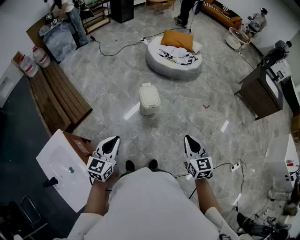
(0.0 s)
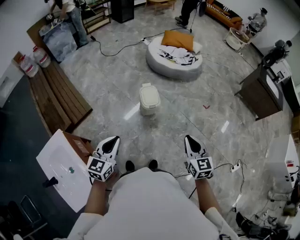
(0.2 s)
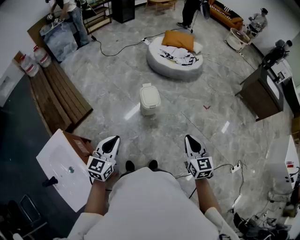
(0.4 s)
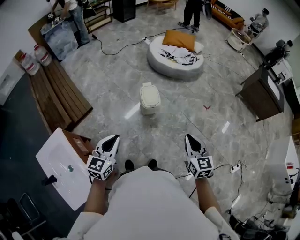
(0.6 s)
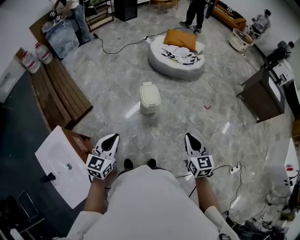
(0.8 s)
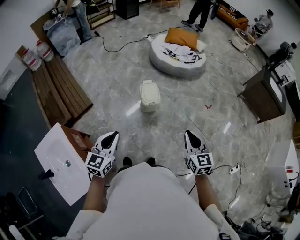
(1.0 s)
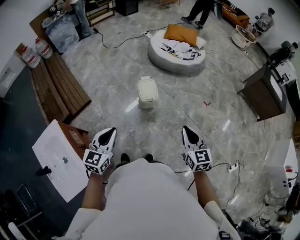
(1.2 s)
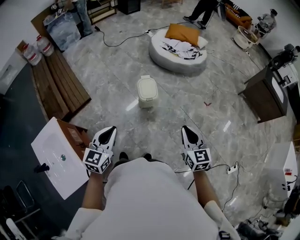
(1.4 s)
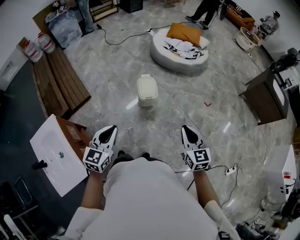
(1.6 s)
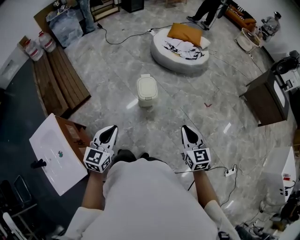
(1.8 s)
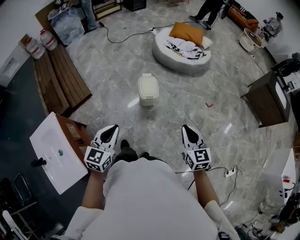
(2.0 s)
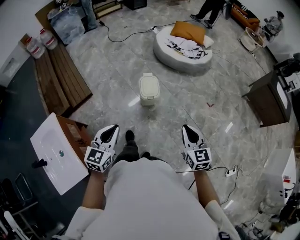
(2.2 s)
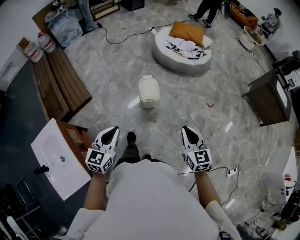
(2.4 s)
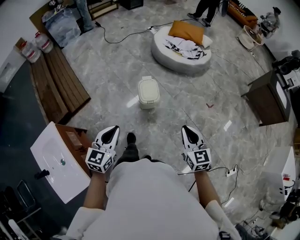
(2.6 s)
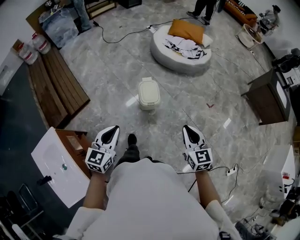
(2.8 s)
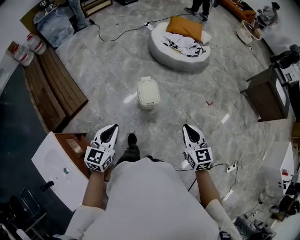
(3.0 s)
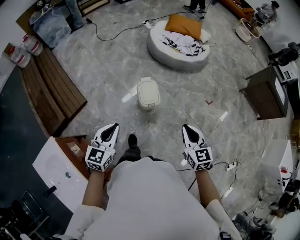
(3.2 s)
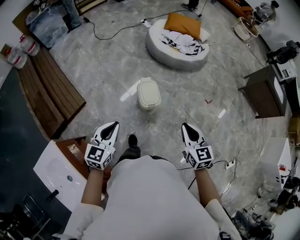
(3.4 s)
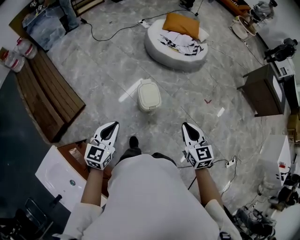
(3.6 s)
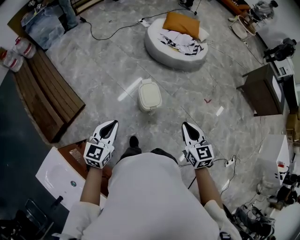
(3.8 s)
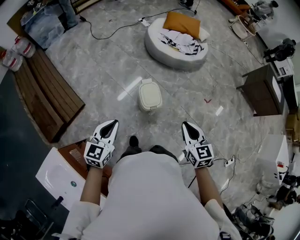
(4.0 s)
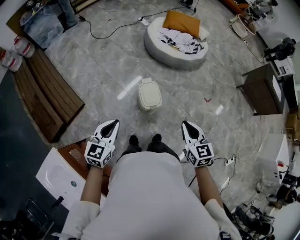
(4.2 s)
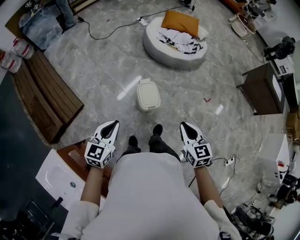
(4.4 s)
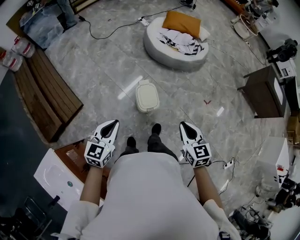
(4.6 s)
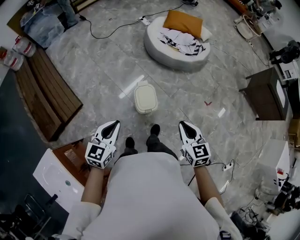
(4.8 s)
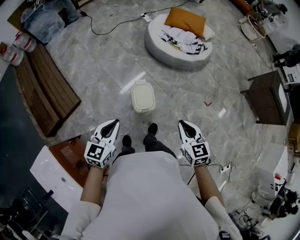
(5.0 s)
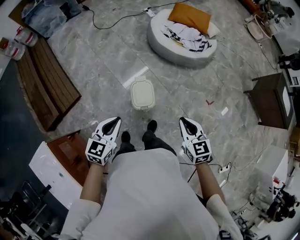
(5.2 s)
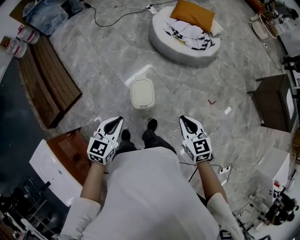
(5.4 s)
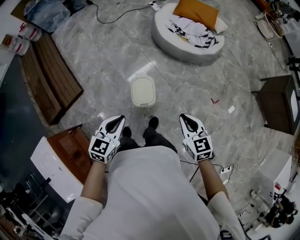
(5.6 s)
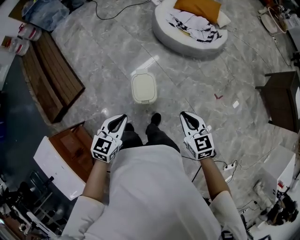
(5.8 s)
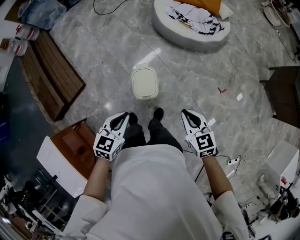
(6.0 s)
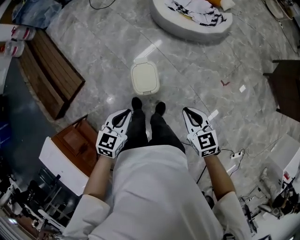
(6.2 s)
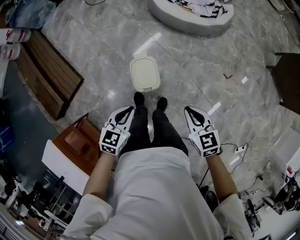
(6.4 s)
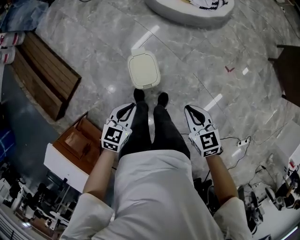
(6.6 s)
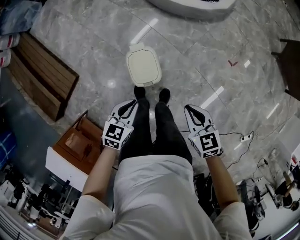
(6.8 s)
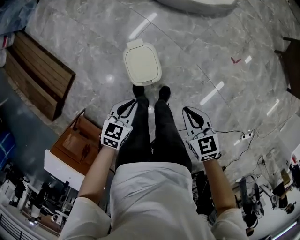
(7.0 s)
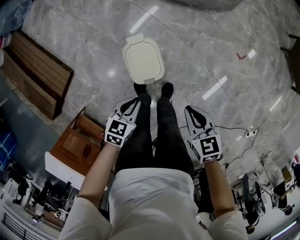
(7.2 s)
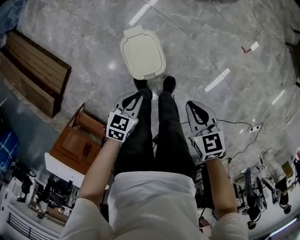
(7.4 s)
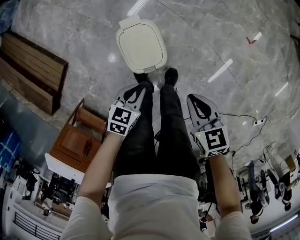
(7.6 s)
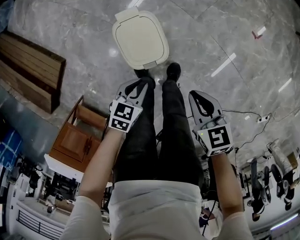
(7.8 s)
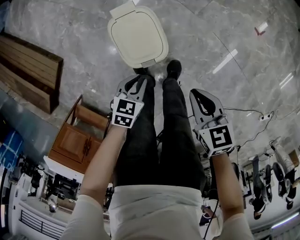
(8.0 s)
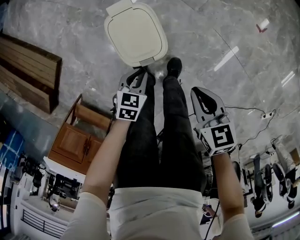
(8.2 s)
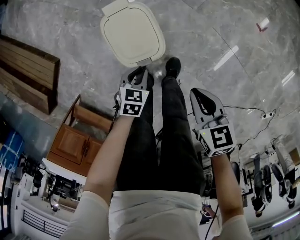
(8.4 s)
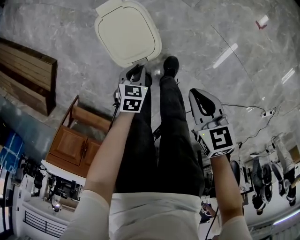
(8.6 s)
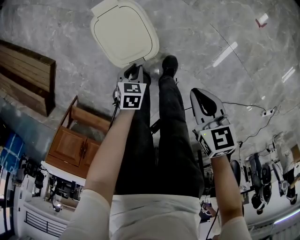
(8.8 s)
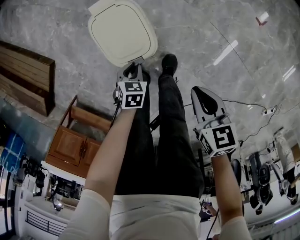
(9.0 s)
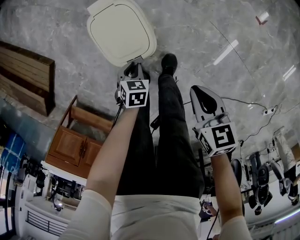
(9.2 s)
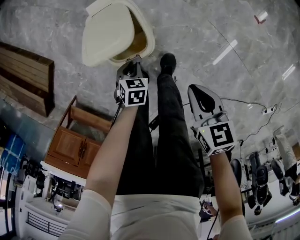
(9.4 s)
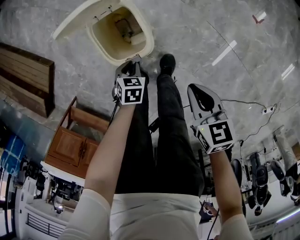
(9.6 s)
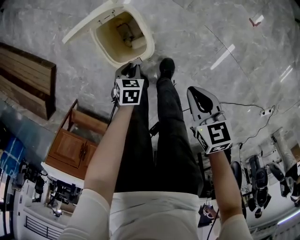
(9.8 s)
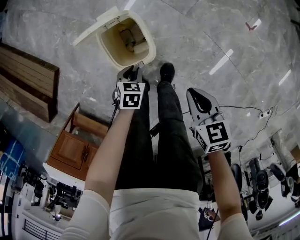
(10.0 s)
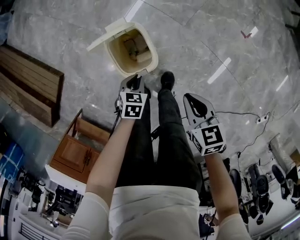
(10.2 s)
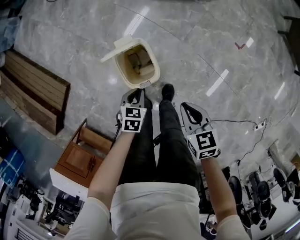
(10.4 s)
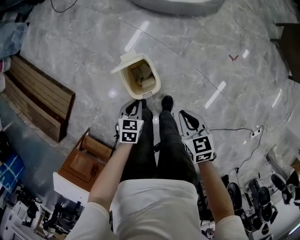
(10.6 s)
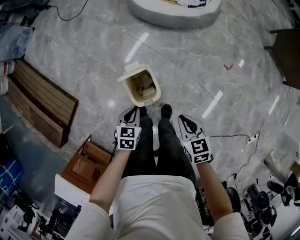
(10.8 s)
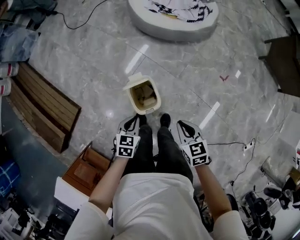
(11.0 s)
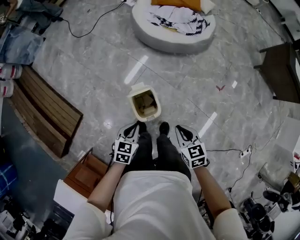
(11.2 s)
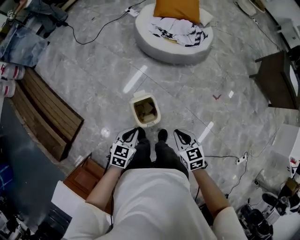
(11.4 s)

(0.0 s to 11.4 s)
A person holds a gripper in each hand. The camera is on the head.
0.0 s - 1.4 s: Both grippers travel together to the right, approximately 5 cm.
1.4 s - 2.8 s: Both grippers travel together forward, roughly 10 cm.
2.8 s - 4.2 s: Both grippers move forward and to the left, roughly 15 cm.
4.2 s - 5.6 s: The left gripper shifts roughly 20 cm to the right and forward. Meanwhile the right gripper heads forward, to the right and downward, covering approximately 20 cm.
5.6 s - 7.2 s: Both grippers move downward, roughly 25 cm. The left gripper turns by approximately 30 degrees. The right gripper turns by about 20 degrees.
7.2 s - 8.6 s: The right gripper heads downward, covering approximately 15 cm. The left gripper travels downward by about 25 cm.
8.6 s - 10.0 s: The grippers make only small movements.
10.0 s - 11.4 s: The right gripper goes approximately 25 cm upward. The left gripper shifts about 40 cm upward, and swivels some 30 degrees.

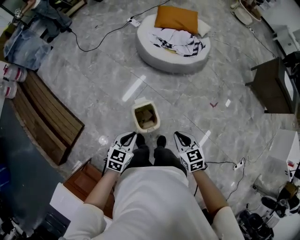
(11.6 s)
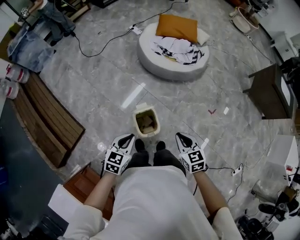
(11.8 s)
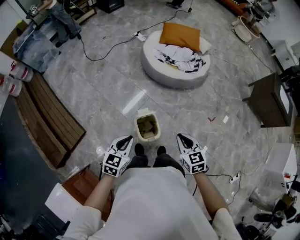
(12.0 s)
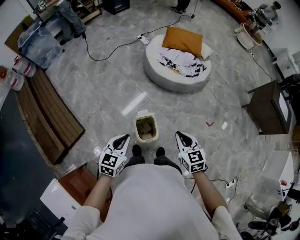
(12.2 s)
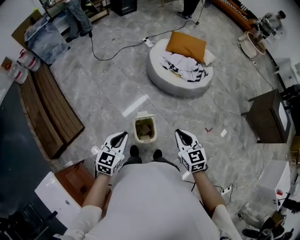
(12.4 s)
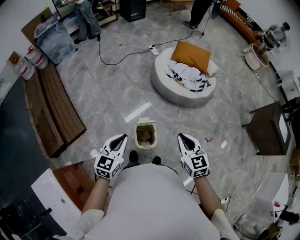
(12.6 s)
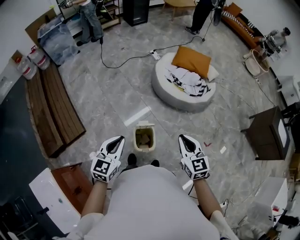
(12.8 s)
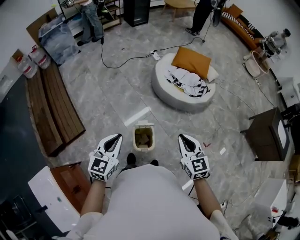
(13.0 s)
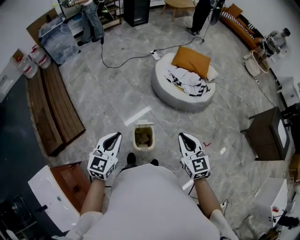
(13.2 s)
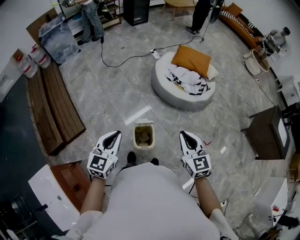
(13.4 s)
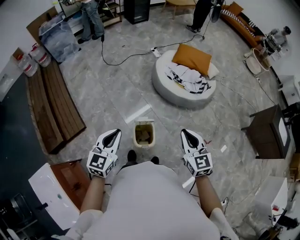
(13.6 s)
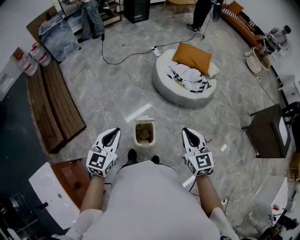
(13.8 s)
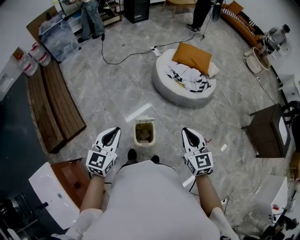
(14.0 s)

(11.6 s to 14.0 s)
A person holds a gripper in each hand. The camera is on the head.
11.6 s - 12.8 s: The right gripper goes approximately 20 cm upward and forward, and swivels roughly 20 degrees. Meanwhile the left gripper shifts about 20 cm upward, and changes its angle by approximately 30 degrees.
12.8 s - 14.0 s: The grippers make only small movements.

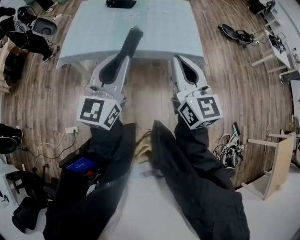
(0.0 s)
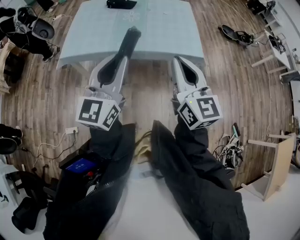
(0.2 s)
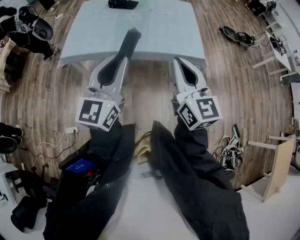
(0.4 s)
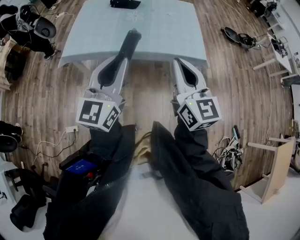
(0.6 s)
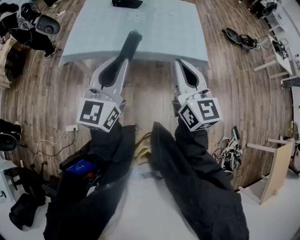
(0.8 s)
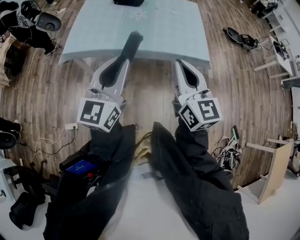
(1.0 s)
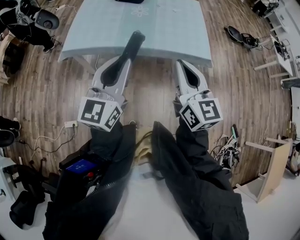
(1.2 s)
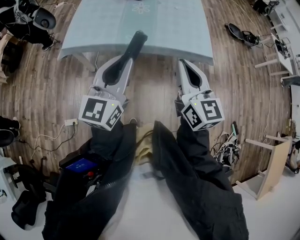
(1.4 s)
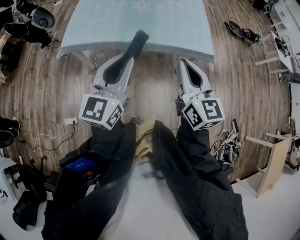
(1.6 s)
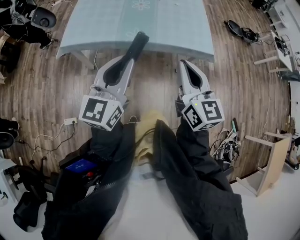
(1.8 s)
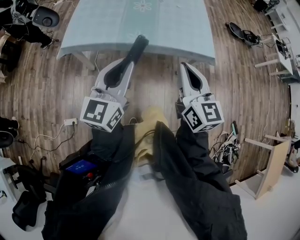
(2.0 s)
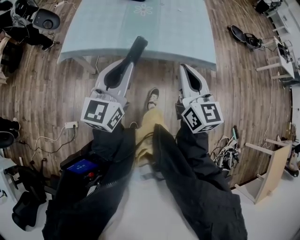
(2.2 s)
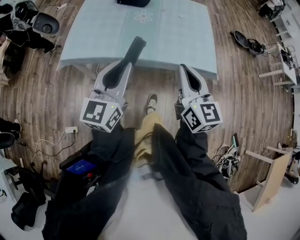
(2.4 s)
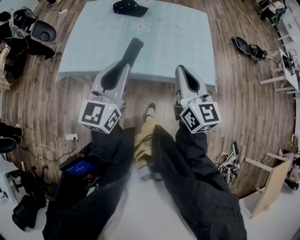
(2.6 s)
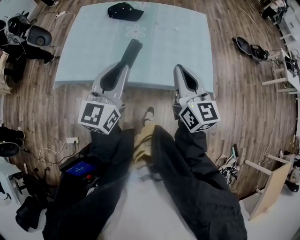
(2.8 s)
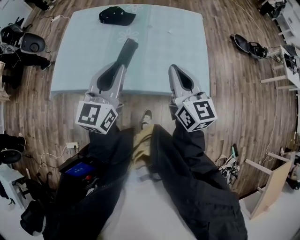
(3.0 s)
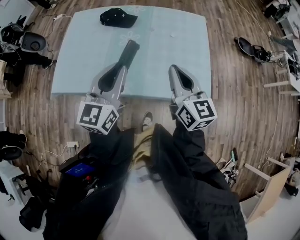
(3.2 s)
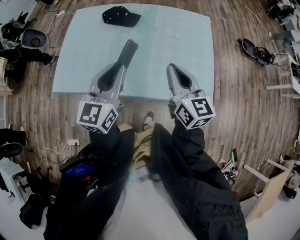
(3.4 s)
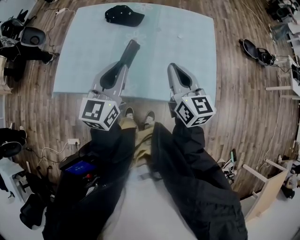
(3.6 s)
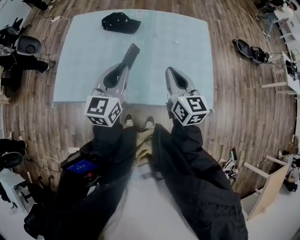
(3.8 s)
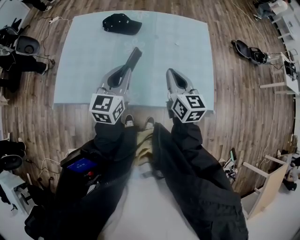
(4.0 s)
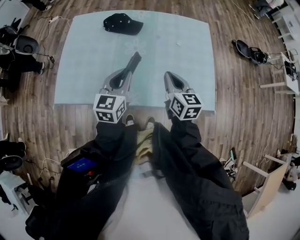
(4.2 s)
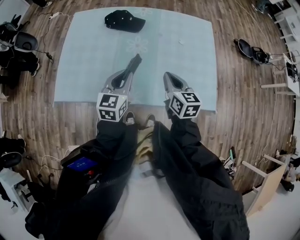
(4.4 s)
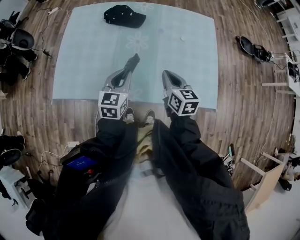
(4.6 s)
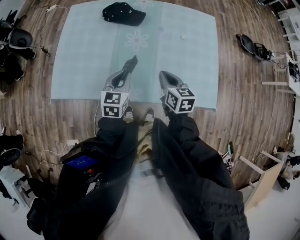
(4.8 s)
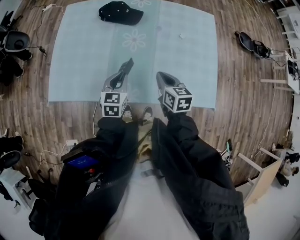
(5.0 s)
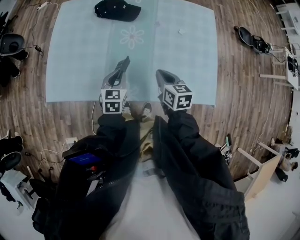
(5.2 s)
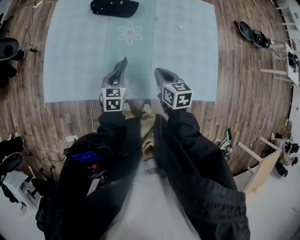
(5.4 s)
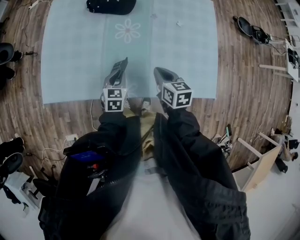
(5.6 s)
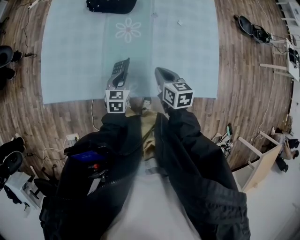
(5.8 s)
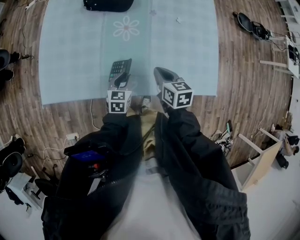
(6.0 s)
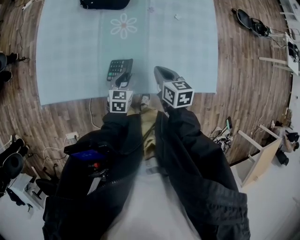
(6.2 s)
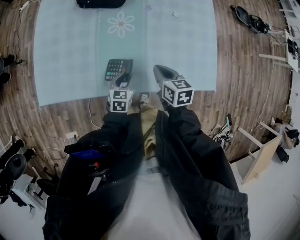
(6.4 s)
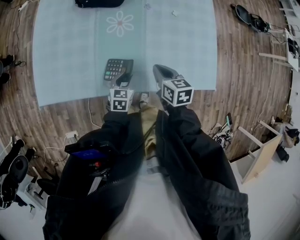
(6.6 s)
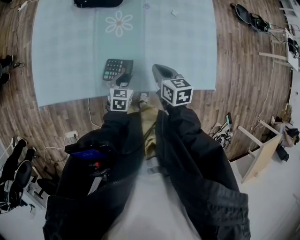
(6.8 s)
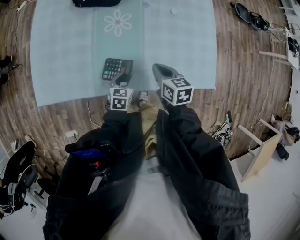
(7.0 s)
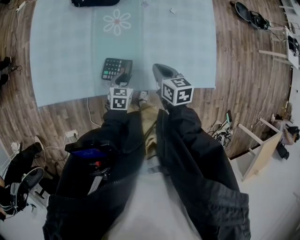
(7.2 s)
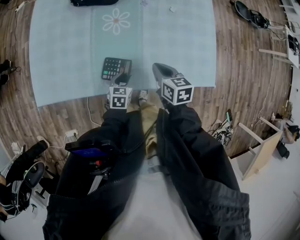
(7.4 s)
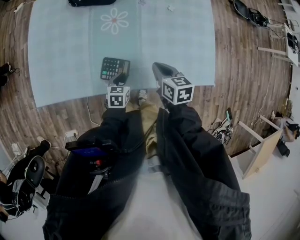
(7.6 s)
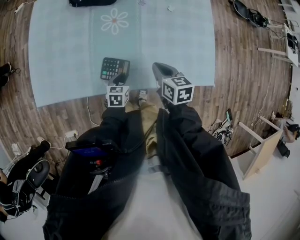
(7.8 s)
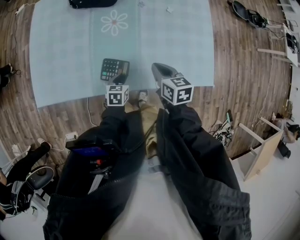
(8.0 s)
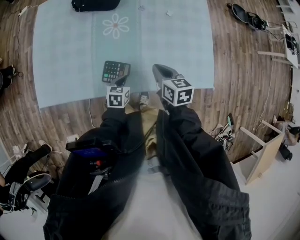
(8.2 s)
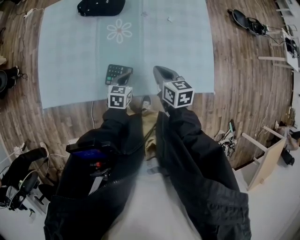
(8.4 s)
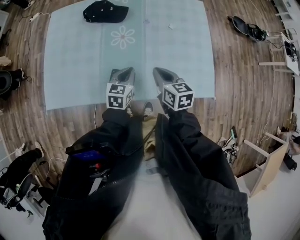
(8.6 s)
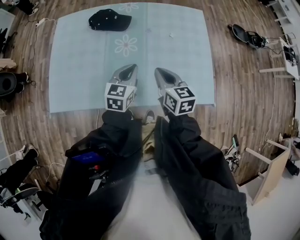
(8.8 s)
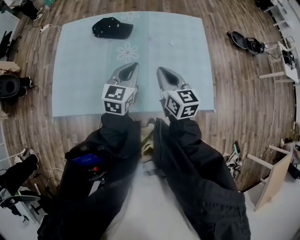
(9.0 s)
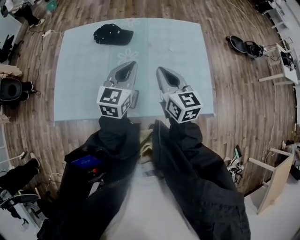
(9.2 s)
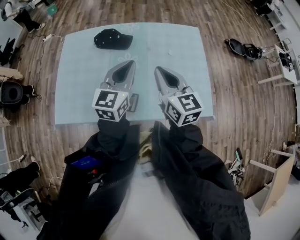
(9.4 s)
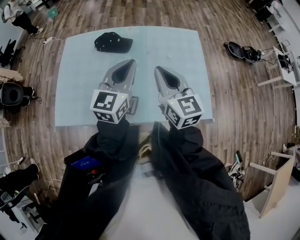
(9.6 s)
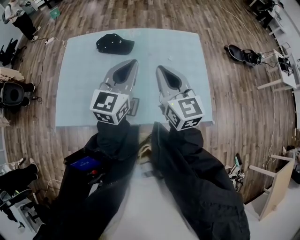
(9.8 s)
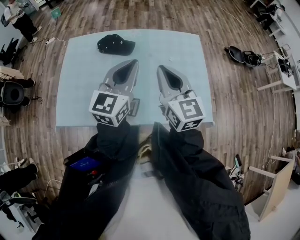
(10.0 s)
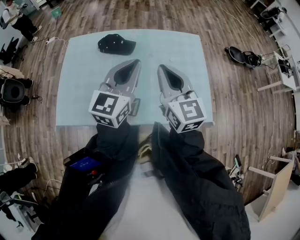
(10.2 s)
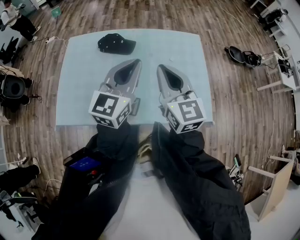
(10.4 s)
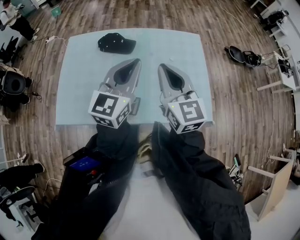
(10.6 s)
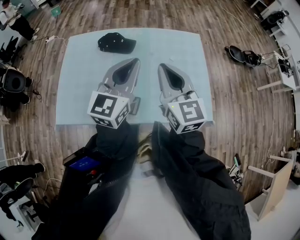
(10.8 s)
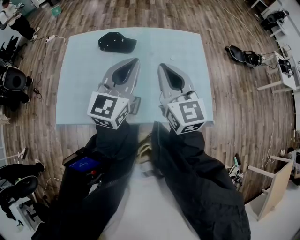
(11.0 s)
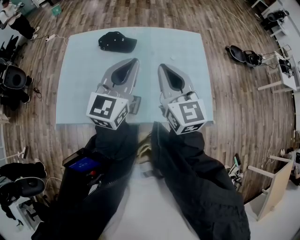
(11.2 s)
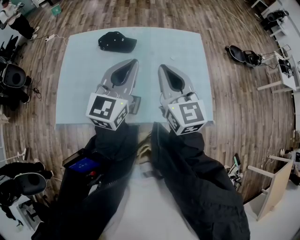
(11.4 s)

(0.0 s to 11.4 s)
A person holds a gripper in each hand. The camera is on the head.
0.0 s - 1.4 s: The right gripper ends up about 5 cm from where it was. Meanwhile the left gripper changes place by approximately 5 cm.
1.4 s - 2.8 s: Both grippers move forward, about 25 cm.
2.8 s - 4.2 s: The grippers both shift forward and downward by roughly 20 cm.
4.2 s - 5.6 s: The left gripper is displaced downward by about 25 cm, and rotates roughly 30 degrees. The right gripper travels downward by approximately 15 cm, and swivels about 20 degrees.
5.6 s - 7.2 s: The left gripper moves to the right, downward and backward, roughly 10 cm, and opens up.
7.2 s - 8.6 s: The left gripper moves upward and forward, roughly 15 cm, and closes. Meanwhile the right gripper ends up approximately 5 cm from where it was.
8.6 s - 10.0 s: Both grippers travel together upward, about 30 cm. The left gripper tips its fingers upward by about 30 degrees. The right gripper angles its fingers upward, by some 30 degrees.
10.0 s - 11.4 s: The grippers stay close to where they were, moving slightly.
